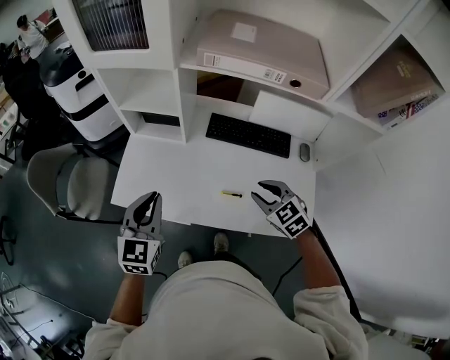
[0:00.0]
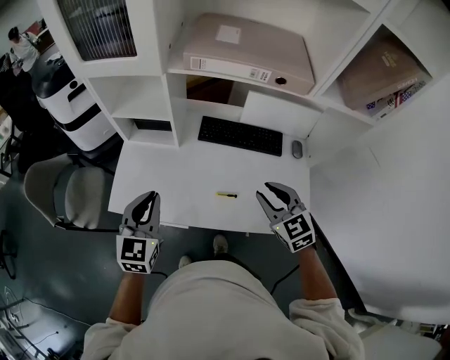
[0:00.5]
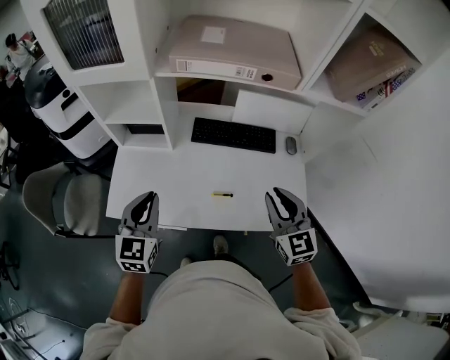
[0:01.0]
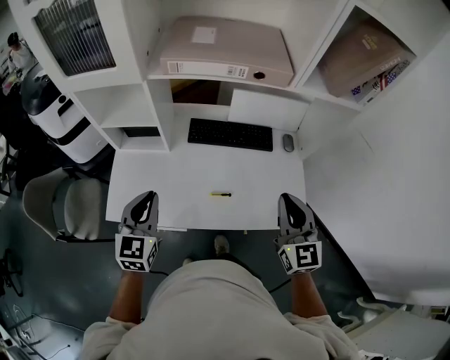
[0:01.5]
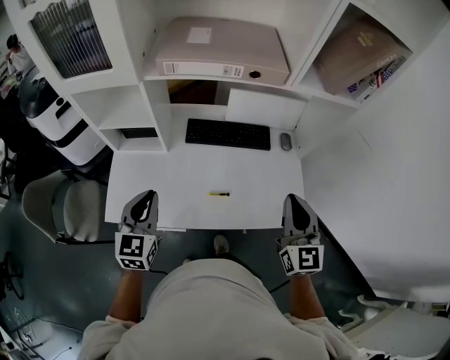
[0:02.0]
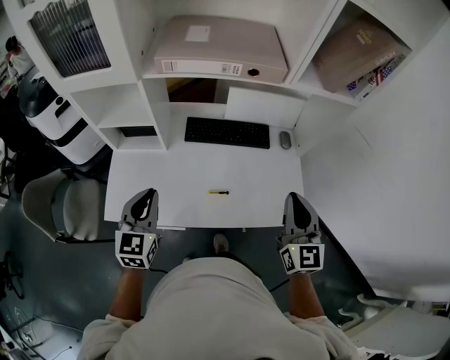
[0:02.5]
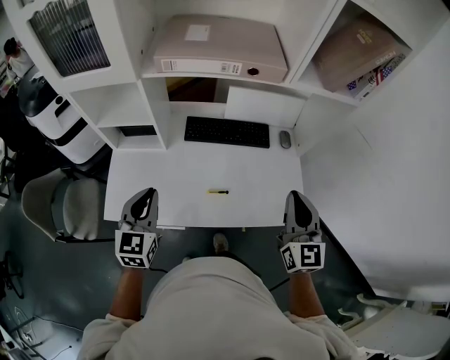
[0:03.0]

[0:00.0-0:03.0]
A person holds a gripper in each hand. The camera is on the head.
0:00.0 to 0:01.5: The right gripper moves upward, to the right and backward, some 20 cm, angles its fingers upward, by about 40 degrees, and closes its fingers.
0:01.5 to 0:03.0: The grippers stay close to where they were, moving slightly.

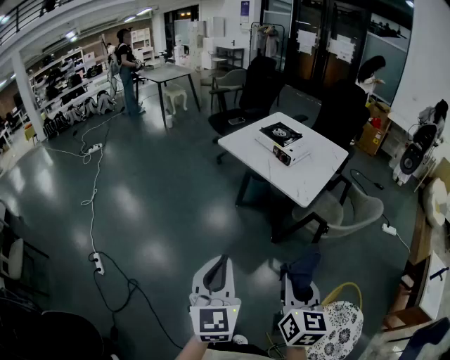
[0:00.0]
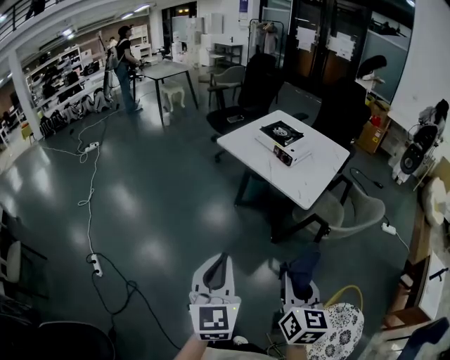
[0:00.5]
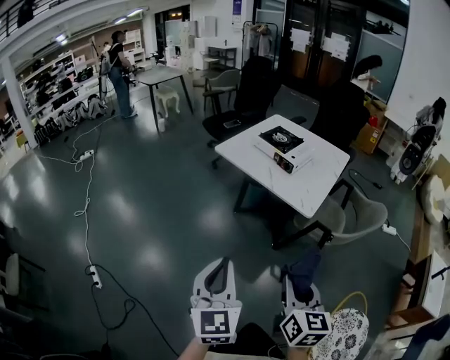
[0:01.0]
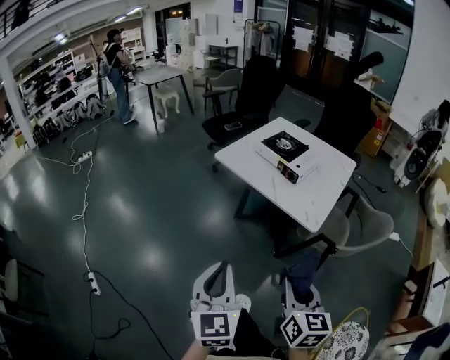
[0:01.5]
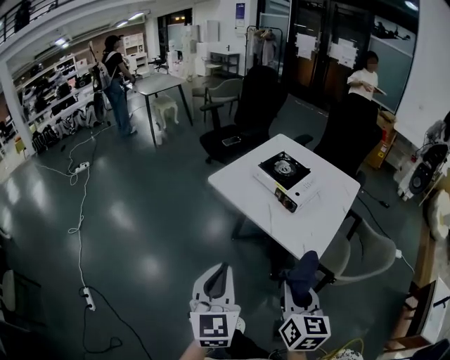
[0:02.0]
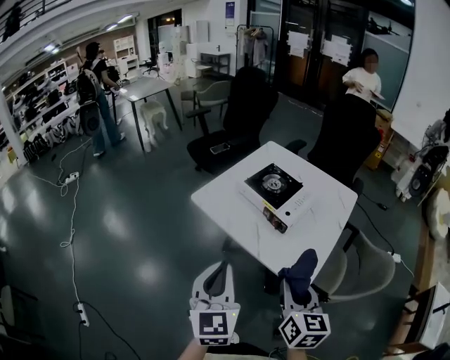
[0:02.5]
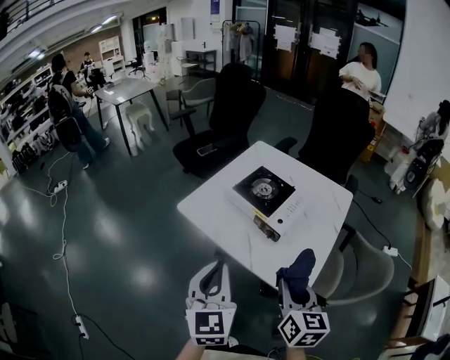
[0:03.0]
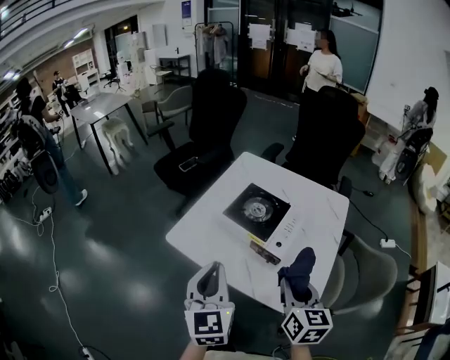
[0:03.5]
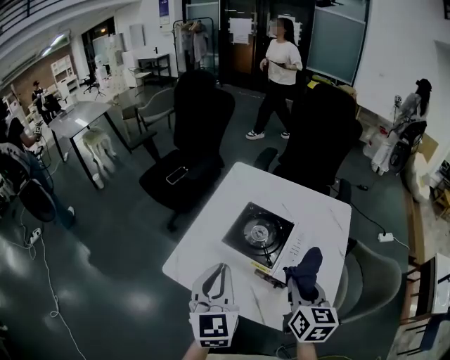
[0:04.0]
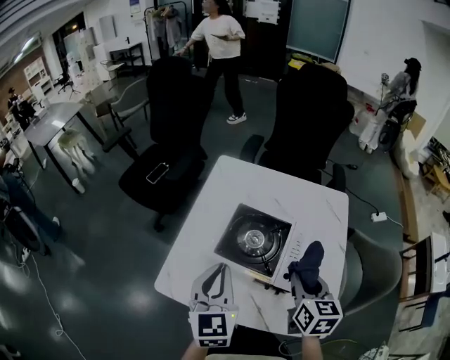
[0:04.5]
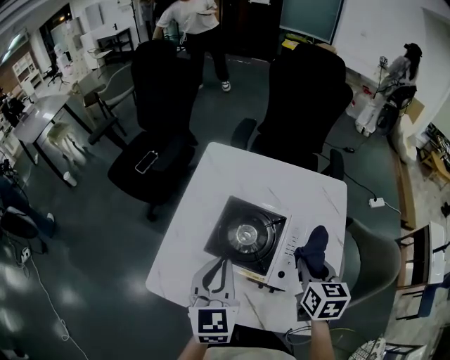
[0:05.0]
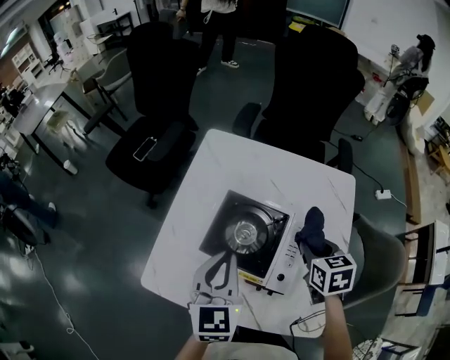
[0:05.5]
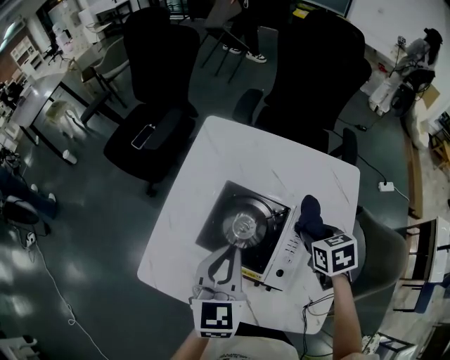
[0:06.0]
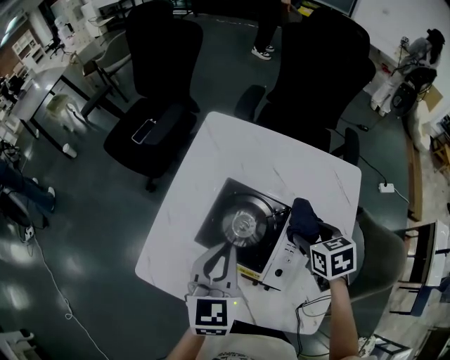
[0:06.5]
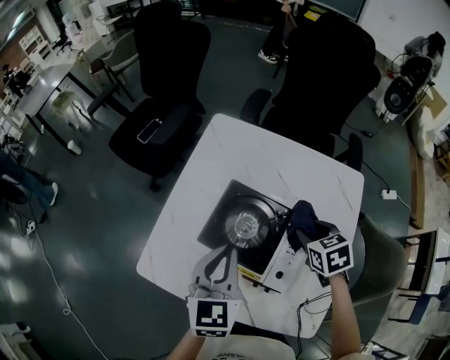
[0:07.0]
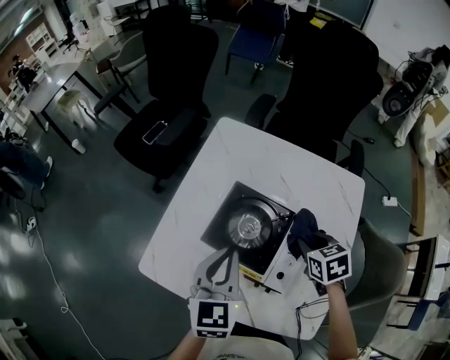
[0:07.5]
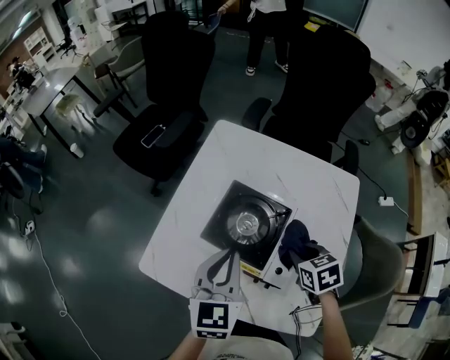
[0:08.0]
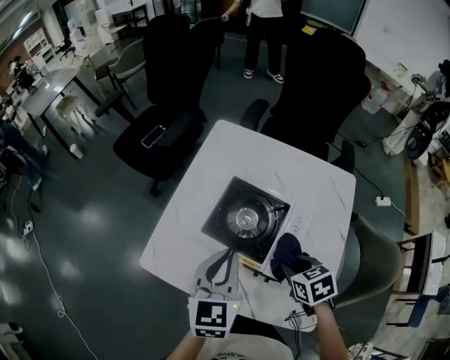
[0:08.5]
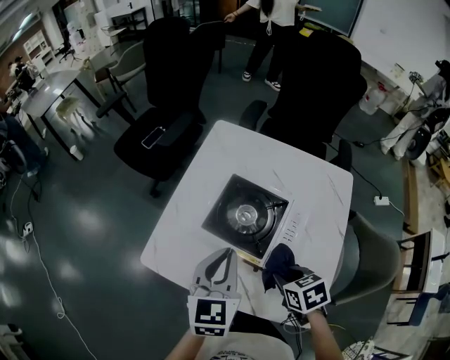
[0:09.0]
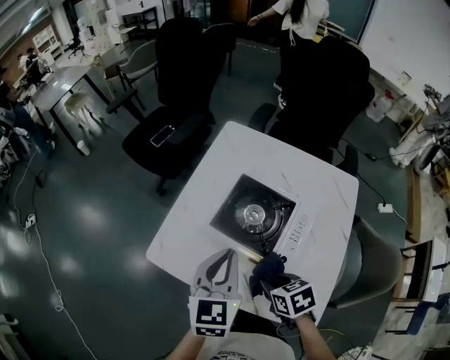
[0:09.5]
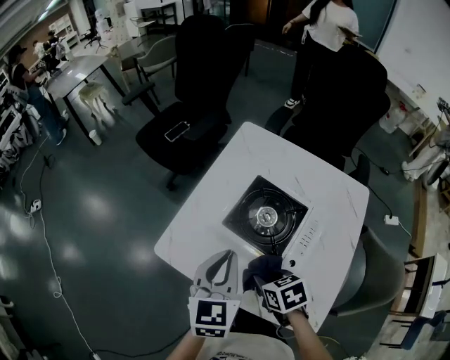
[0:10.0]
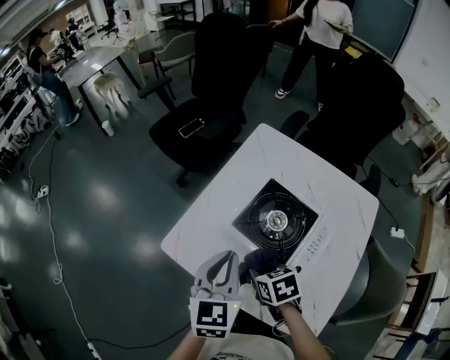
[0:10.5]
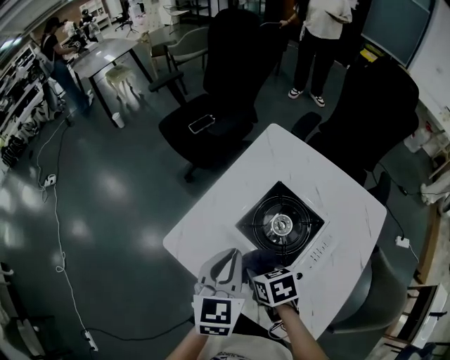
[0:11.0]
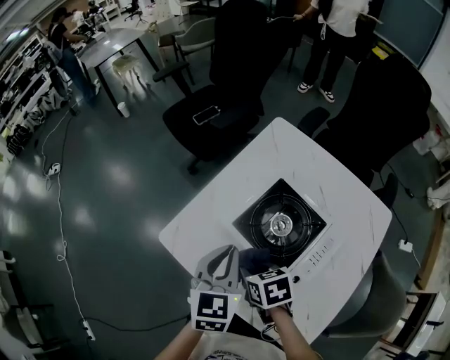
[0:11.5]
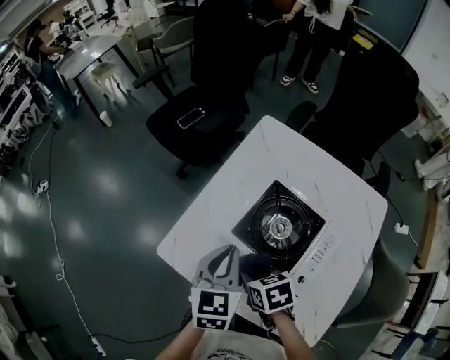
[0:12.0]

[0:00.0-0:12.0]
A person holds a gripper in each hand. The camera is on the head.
0:00.0 to 0:02.0: Both grippers travel together forward, roughly 30 cm.
0:02.0 to 0:04.0: The pair of grippers is taken forward, approximately 40 cm.
0:04.0 to 0:06.0: The left gripper goes roughly 20 cm forward, downward and to the right. Meanwhile the right gripper is displaced forward and downward by approximately 20 cm, and tilts its fingers approximately 40 degrees downward.
0:06.0 to 0:08.0: The right gripper is displaced backward by roughly 5 cm, and opens, then closes once more.
0:08.0 to 0:10.0: The right gripper moves to the left and backward, approximately 20 cm. The left gripper goes about 5 cm to the left.
0:10.0 to 0:12.0: The grippers both shift forward by roughly 5 cm.

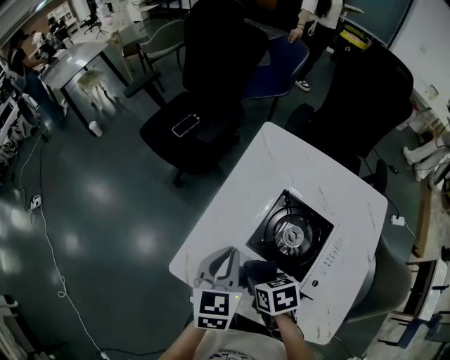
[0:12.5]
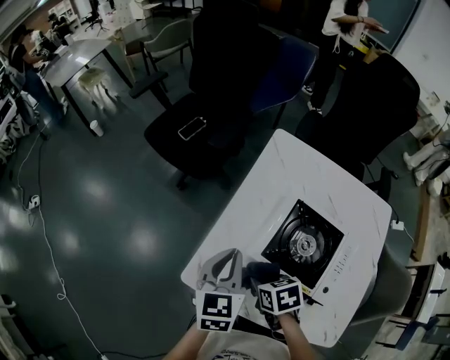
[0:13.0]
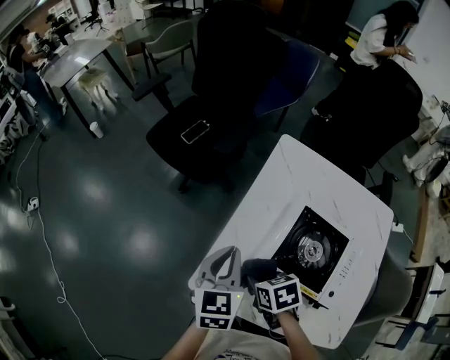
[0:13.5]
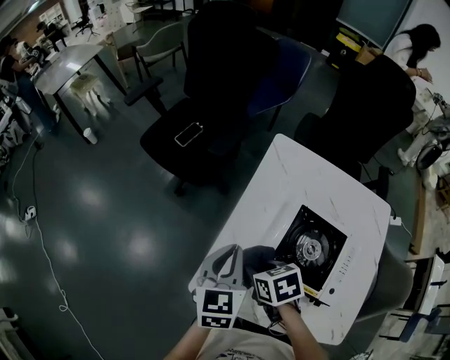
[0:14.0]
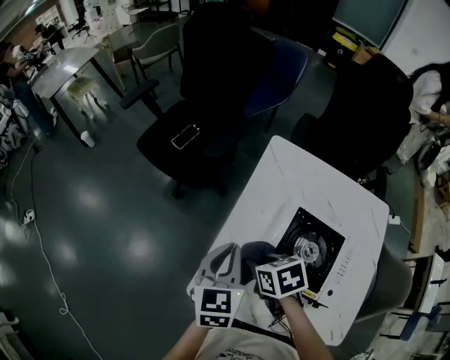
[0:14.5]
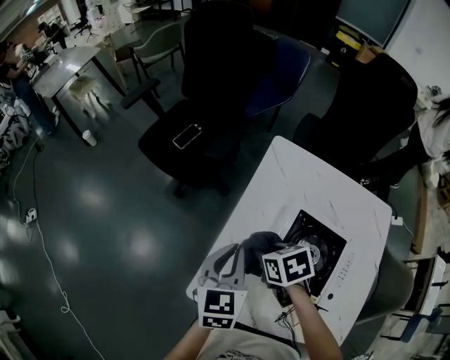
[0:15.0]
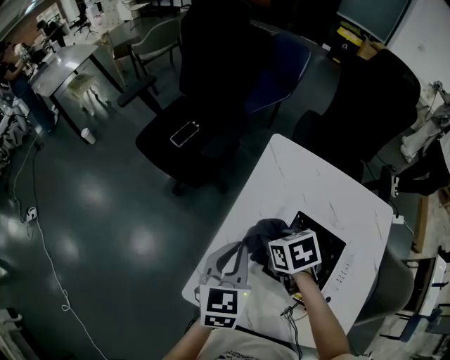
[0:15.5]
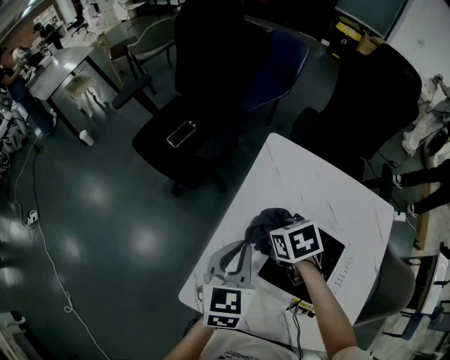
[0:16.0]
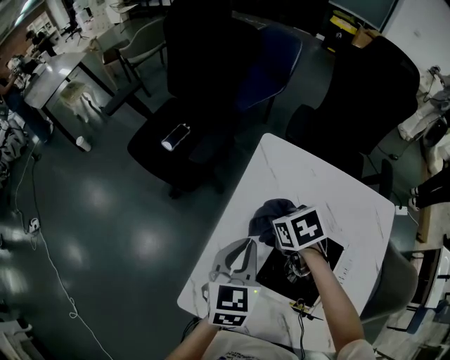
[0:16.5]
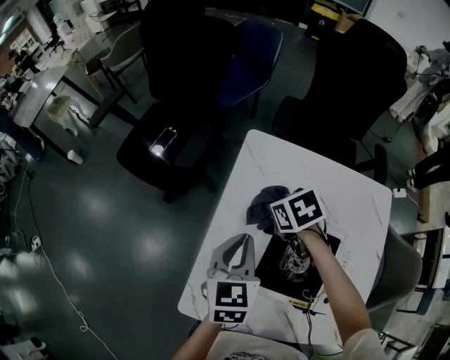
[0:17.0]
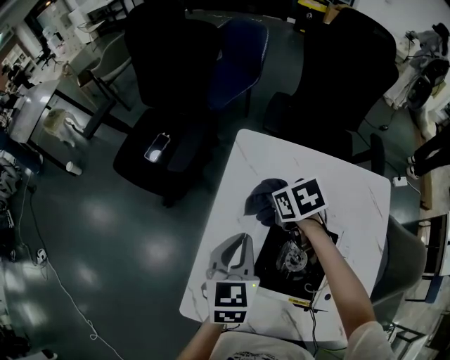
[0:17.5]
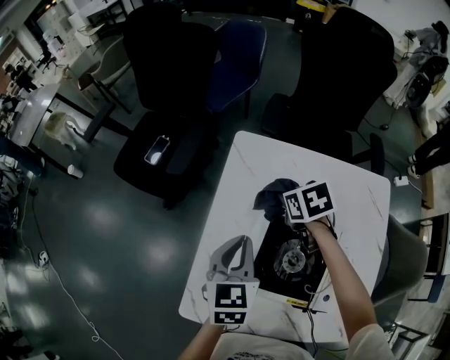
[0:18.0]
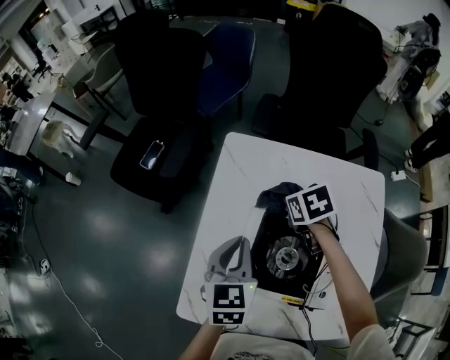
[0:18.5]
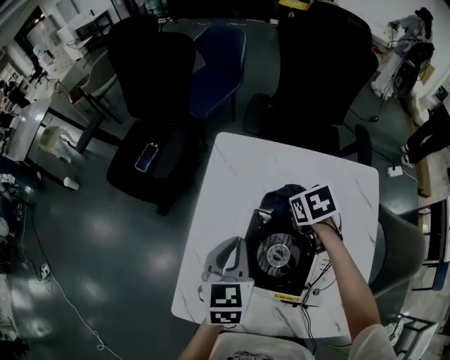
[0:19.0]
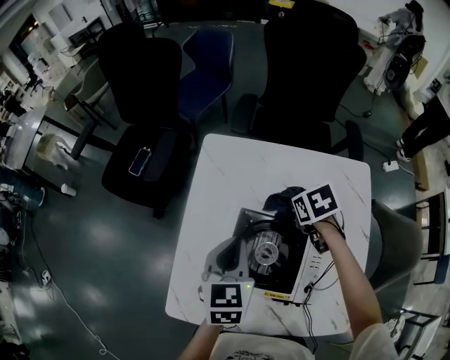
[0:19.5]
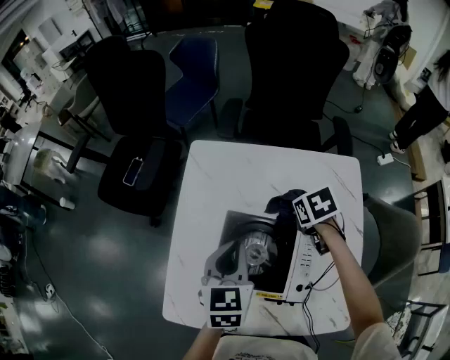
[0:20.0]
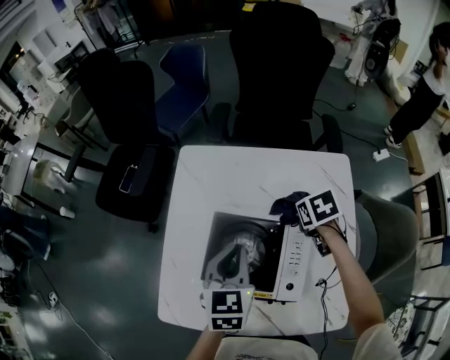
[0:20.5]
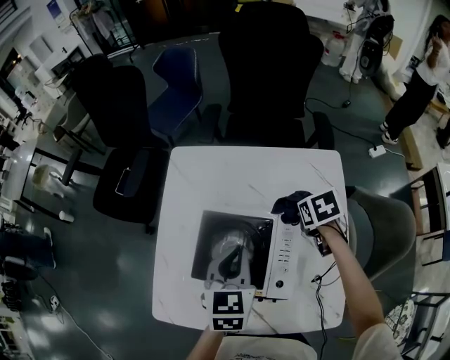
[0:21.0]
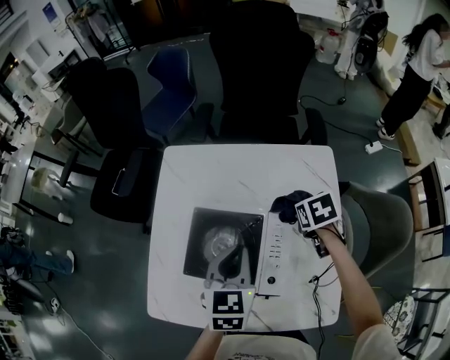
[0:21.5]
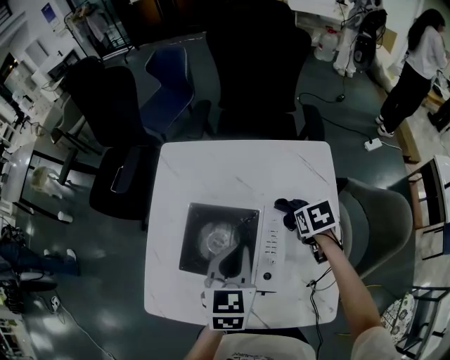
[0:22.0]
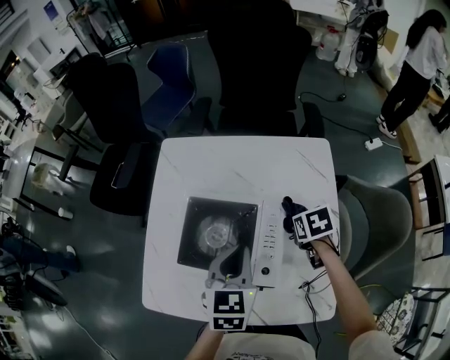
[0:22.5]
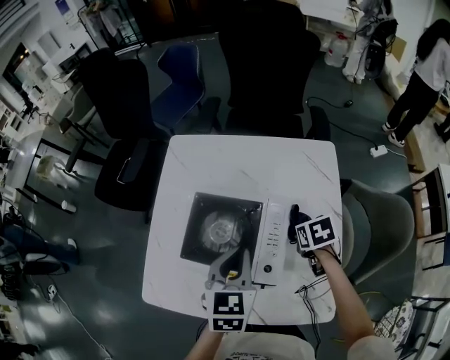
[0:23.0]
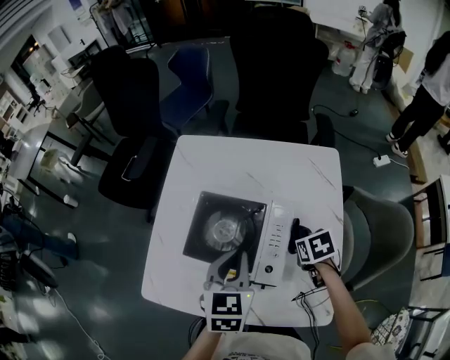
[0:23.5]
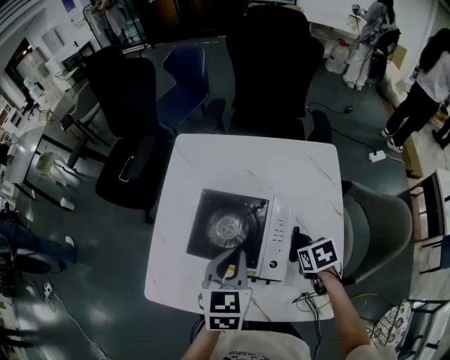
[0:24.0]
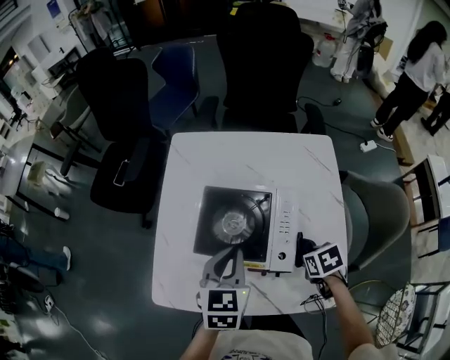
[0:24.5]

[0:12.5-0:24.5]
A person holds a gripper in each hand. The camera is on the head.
0:12.5 to 0:14.5: The right gripper heads forward, covering some 15 cm. Meanwhile the left gripper is displaced forward by some 10 cm.
0:14.5 to 0:16.5: The right gripper travels forward and to the right by approximately 20 cm. The left gripper travels to the right by some 10 cm.
0:16.5 to 0:18.5: The right gripper travels to the right by roughly 15 cm. Meanwhile the left gripper is displaced to the right by roughly 5 cm.
0:18.5 to 0:20.5: The right gripper moves to the right and backward, roughly 20 cm, while the left gripper moves to the right and backward, some 15 cm.
0:20.5 to 0:22.5: The right gripper moves backward and to the right, some 10 cm; the left gripper is displaced to the right and backward by roughly 10 cm.
0:22.5 to 0:24.5: The right gripper goes about 15 cm backward and to the left, while the left gripper heads to the left, covering roughly 10 cm.
